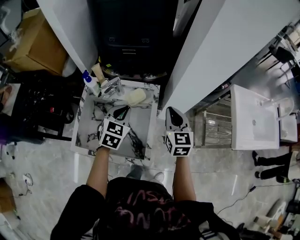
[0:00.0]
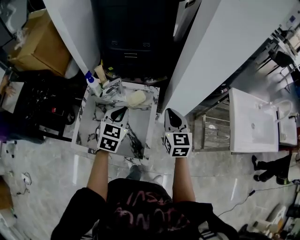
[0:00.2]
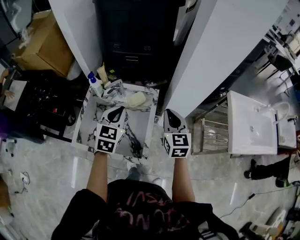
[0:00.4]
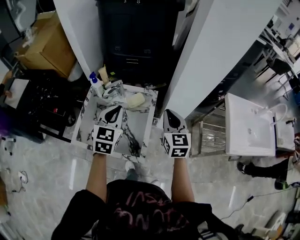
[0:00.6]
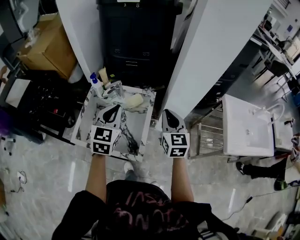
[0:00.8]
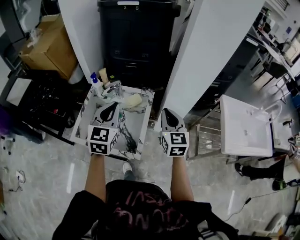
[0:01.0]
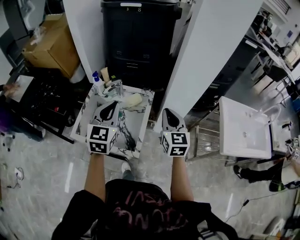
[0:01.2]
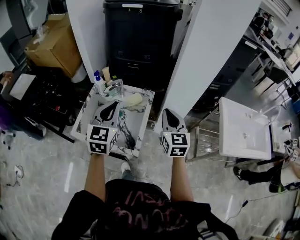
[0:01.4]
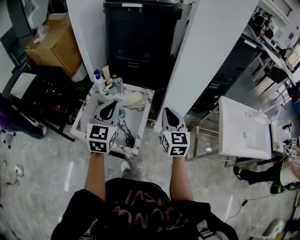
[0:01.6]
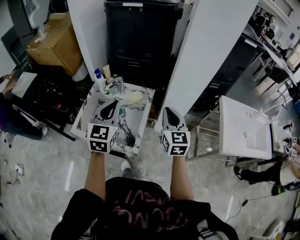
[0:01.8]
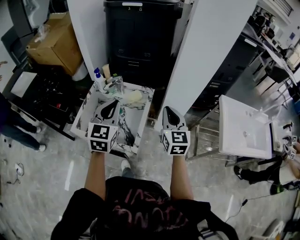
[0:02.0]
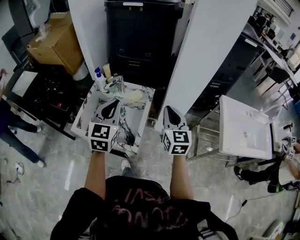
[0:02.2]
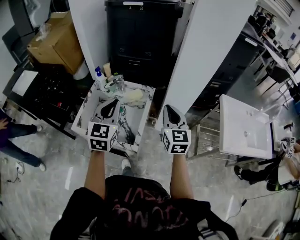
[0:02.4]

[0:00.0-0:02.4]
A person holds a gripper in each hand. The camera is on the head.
0:00.0 to 0:01.2: The left gripper is displaced upward and backward by some 20 cm, and turns by about 30 degrees; the right gripper shifts approximately 15 cm upward and backward.
0:01.2 to 0:02.4: The grippers make only small movements.

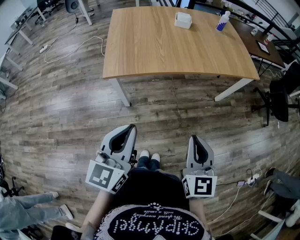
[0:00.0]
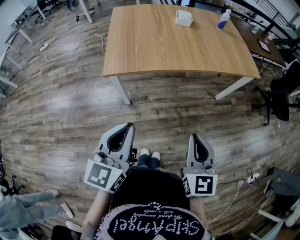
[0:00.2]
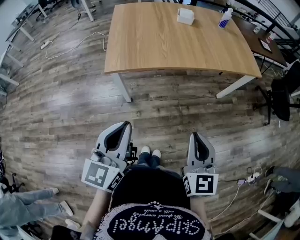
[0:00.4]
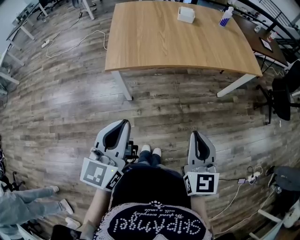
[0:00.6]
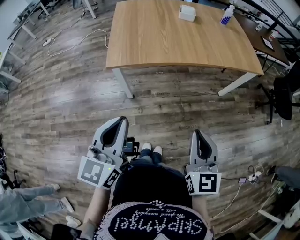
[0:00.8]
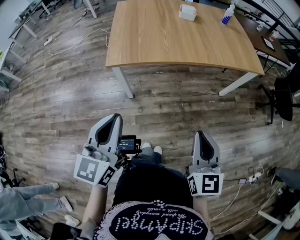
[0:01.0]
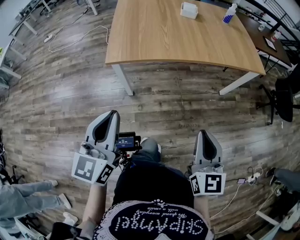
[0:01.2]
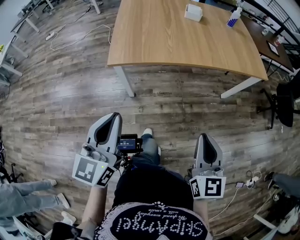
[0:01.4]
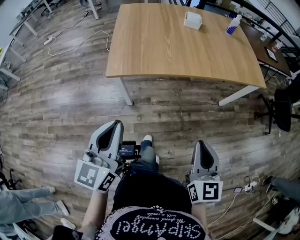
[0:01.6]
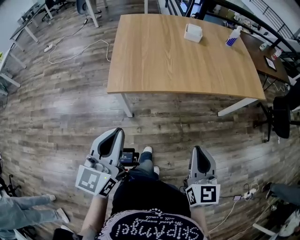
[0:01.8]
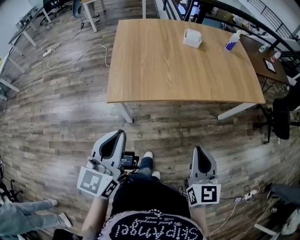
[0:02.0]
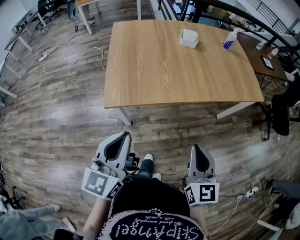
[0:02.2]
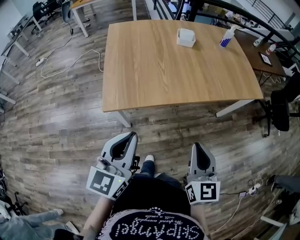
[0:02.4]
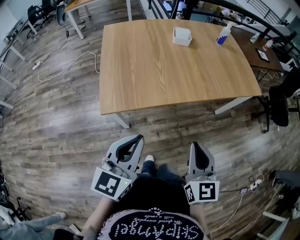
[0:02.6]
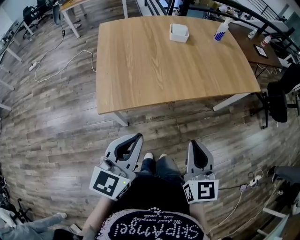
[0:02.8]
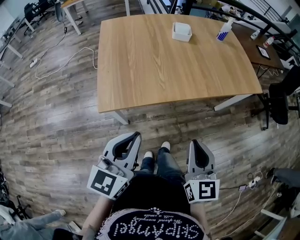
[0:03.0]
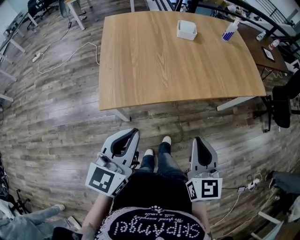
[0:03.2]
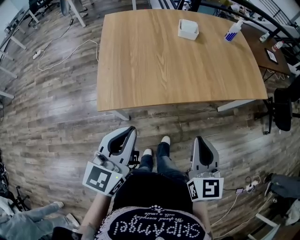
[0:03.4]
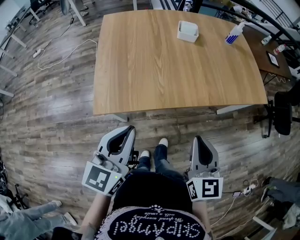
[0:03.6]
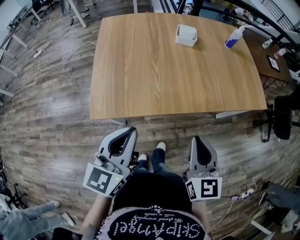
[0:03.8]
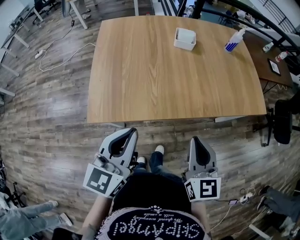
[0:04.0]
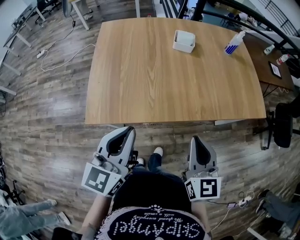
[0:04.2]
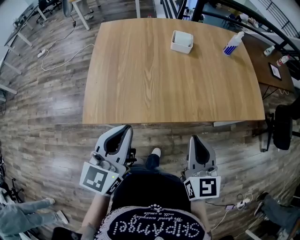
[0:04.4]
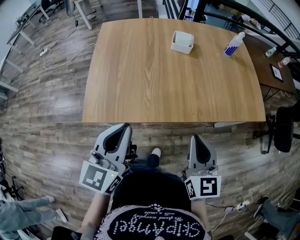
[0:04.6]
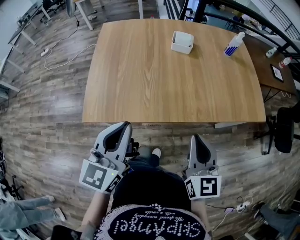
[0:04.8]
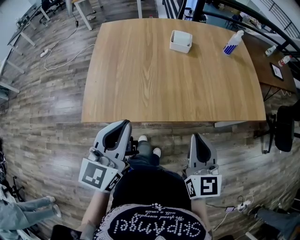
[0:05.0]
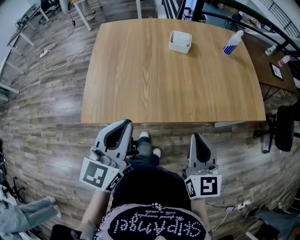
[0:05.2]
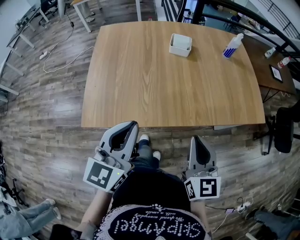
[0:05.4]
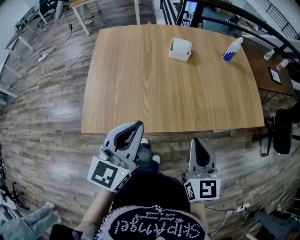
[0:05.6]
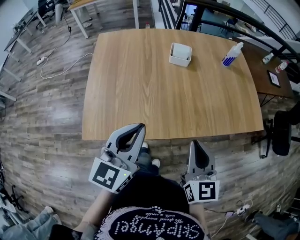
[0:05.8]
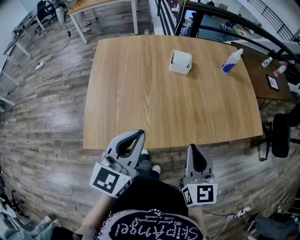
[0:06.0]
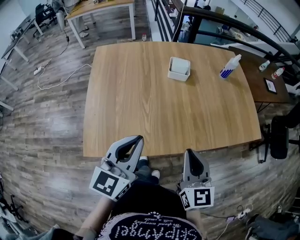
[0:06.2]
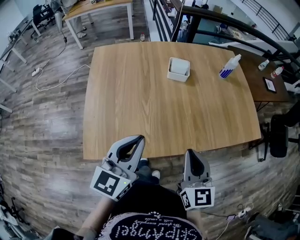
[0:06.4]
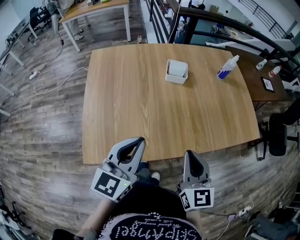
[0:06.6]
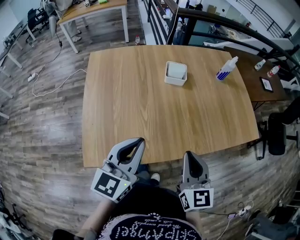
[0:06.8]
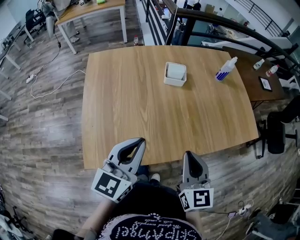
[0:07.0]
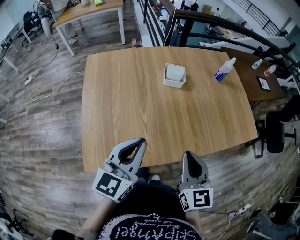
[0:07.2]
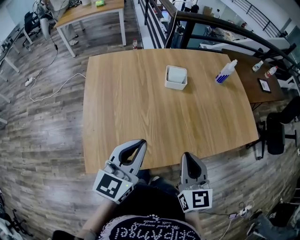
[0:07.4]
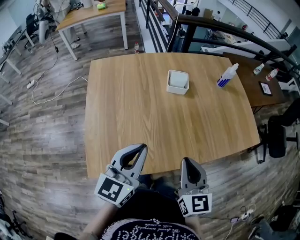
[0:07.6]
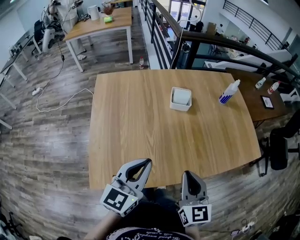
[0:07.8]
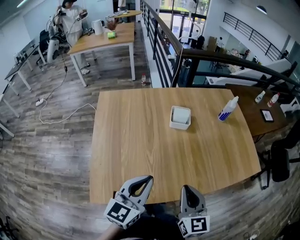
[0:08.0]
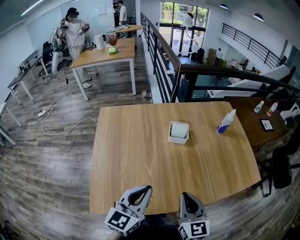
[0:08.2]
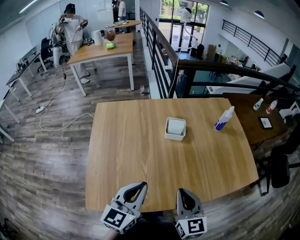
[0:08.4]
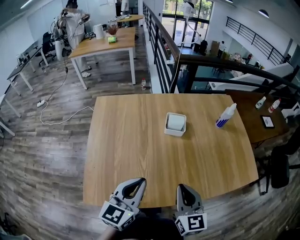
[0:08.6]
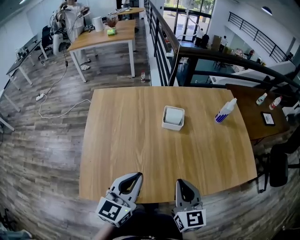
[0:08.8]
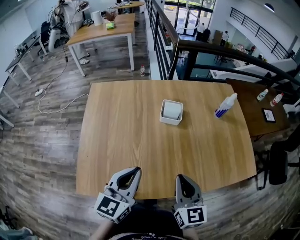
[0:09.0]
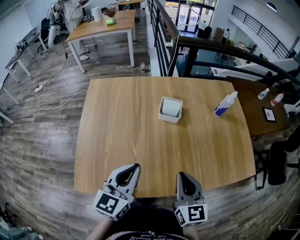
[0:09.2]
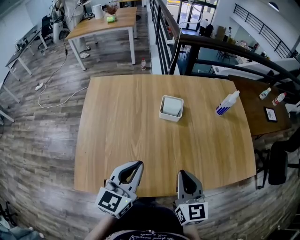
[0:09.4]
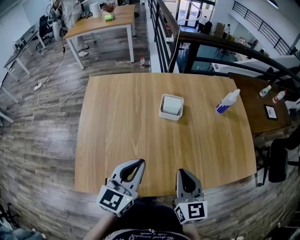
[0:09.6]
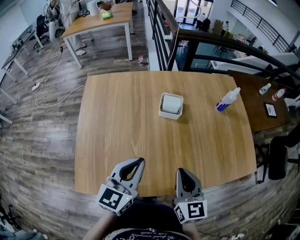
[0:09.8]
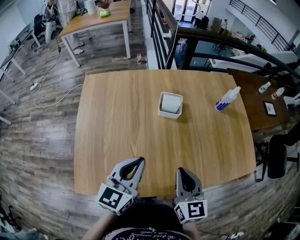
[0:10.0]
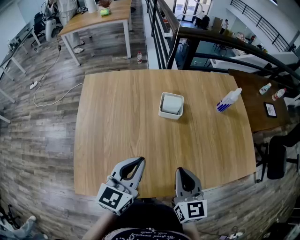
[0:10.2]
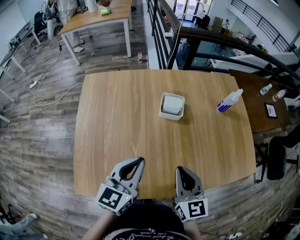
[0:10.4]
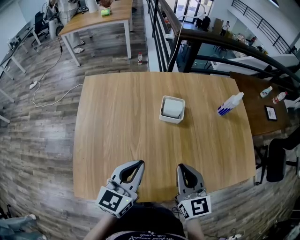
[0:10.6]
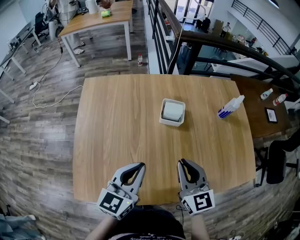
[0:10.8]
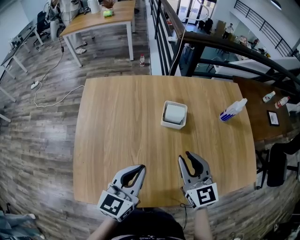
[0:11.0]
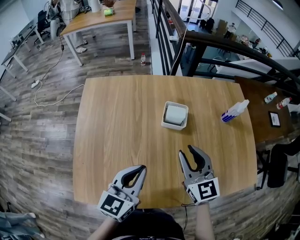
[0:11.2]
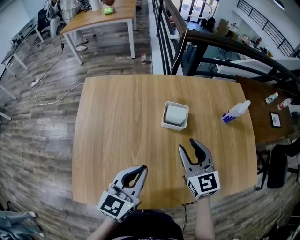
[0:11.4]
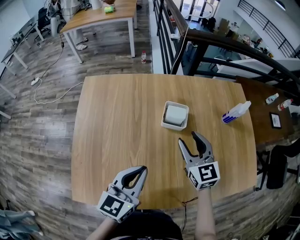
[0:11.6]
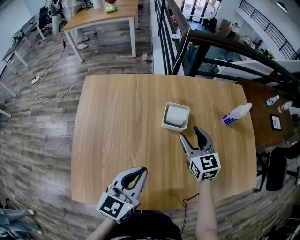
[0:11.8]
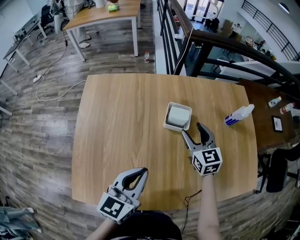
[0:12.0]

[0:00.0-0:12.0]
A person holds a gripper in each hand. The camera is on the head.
0:00.0 to 0:01.6: The left gripper changes place by approximately 5 cm.
0:01.6 to 0:03.0: The right gripper shifts some 15 cm forward and to the left. Meanwhile the left gripper heads forward, covering roughly 15 cm.
0:03.0 to 0:04.4: The two grippers go some 15 cm forward and to the right.
0:04.4 to 0:06.0: The grippers both shift forward by some 10 cm.
0:06.0 to 0:07.6: The right gripper shifts about 5 cm to the left. The left gripper travels forward by some 5 cm.
0:07.6 to 0:09.0: The left gripper ends up roughly 5 cm from where it was. The right gripper moves forward, roughly 5 cm.
0:09.0 to 0:10.4: The left gripper is displaced forward by roughly 5 cm.
0:10.4 to 0:12.0: The right gripper moves forward, about 25 cm, and opens up.

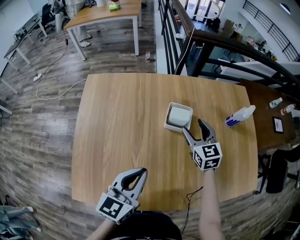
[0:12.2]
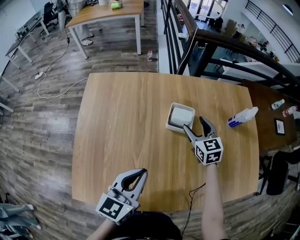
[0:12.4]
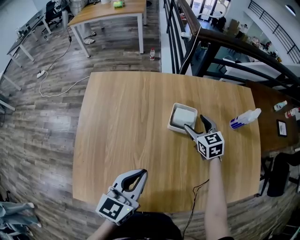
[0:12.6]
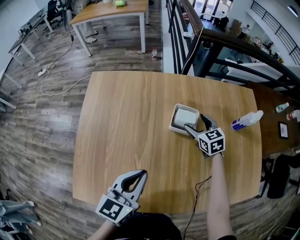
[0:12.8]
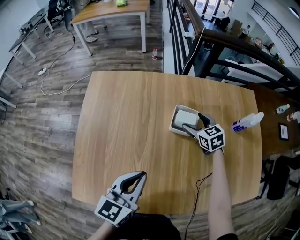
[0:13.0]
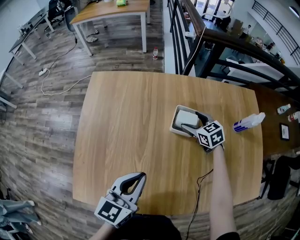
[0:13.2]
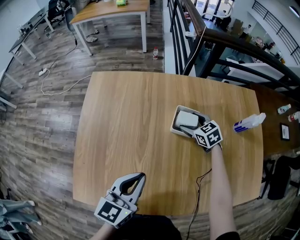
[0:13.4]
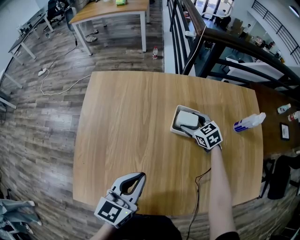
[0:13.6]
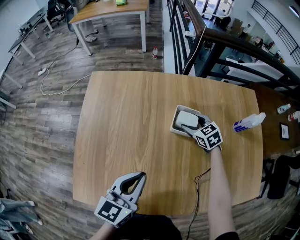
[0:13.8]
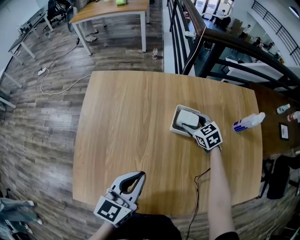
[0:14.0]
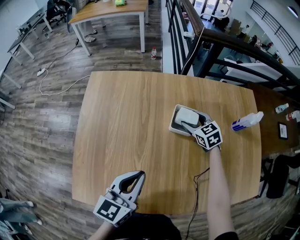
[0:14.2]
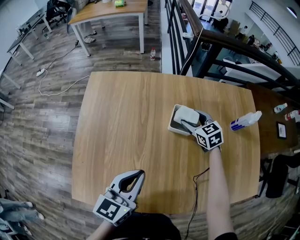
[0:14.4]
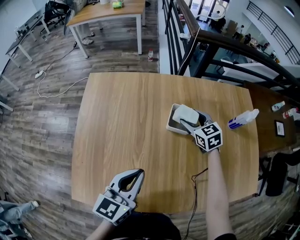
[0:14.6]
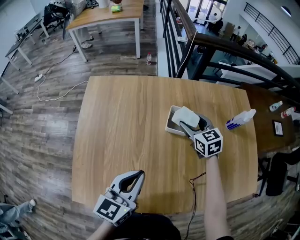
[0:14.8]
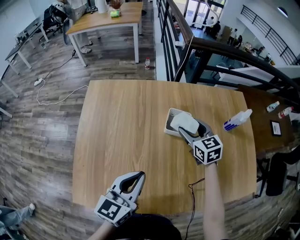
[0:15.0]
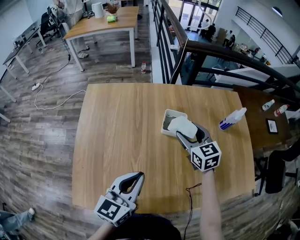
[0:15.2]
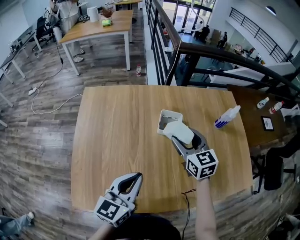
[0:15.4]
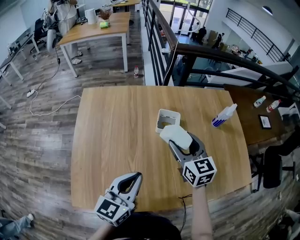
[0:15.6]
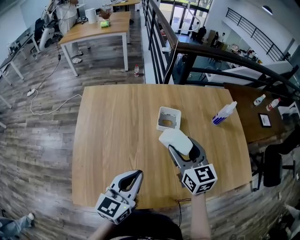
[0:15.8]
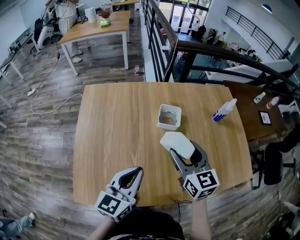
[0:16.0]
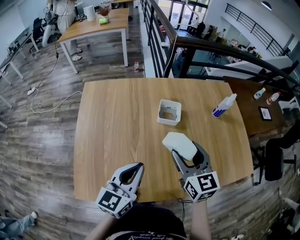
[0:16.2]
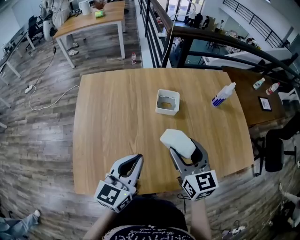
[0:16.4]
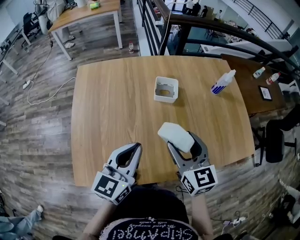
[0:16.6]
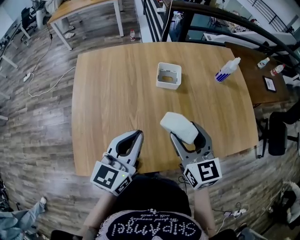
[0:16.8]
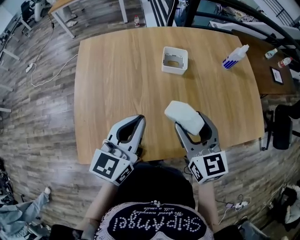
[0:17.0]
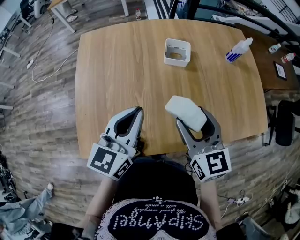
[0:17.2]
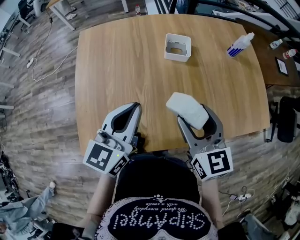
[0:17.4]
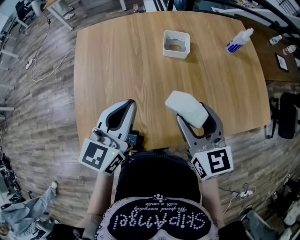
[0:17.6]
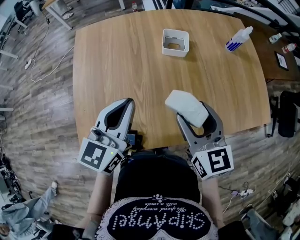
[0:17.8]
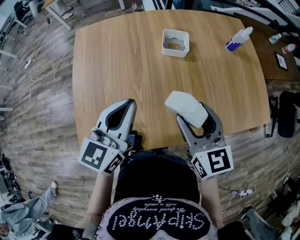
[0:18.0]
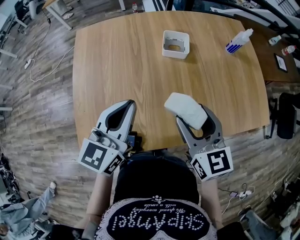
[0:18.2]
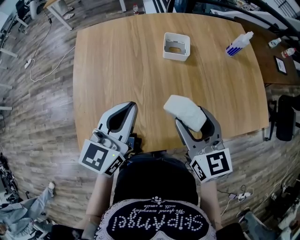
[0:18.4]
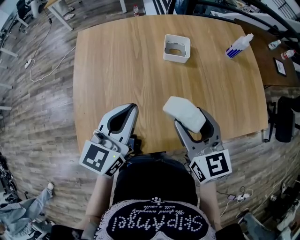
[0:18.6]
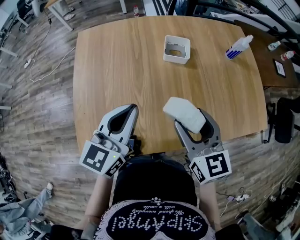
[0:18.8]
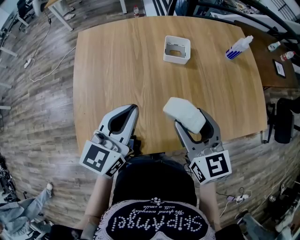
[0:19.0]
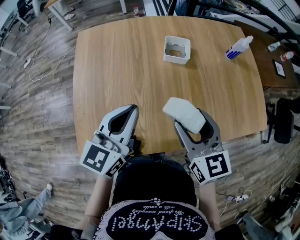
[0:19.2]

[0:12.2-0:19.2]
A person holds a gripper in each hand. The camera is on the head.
0:12.2 to 0:13.6: The right gripper heads downward and forward, covering approximately 10 cm, and turns by about 30 degrees.
0:13.6 to 0:15.0: The right gripper is displaced upward by some 10 cm, and changes its angle by about 20 degrees.
0:15.0 to 0:16.4: The right gripper travels backward and upward by about 25 cm.
0:16.4 to 0:17.8: The right gripper shifts some 5 cm backward.
0:17.8 to 0:19.2: Neither gripper changes place.

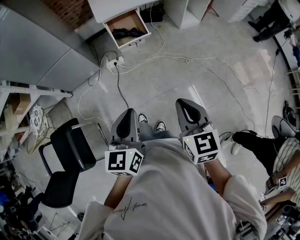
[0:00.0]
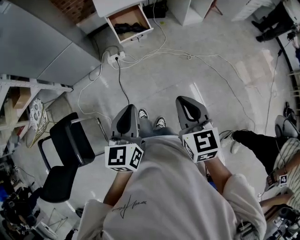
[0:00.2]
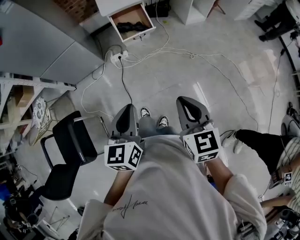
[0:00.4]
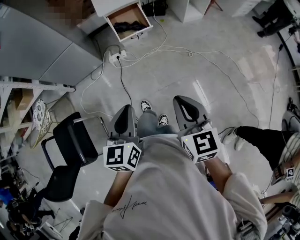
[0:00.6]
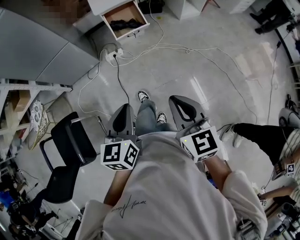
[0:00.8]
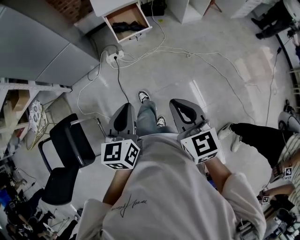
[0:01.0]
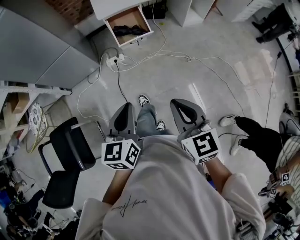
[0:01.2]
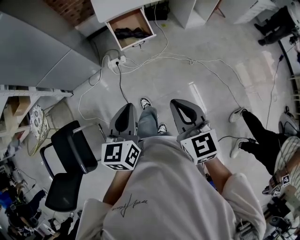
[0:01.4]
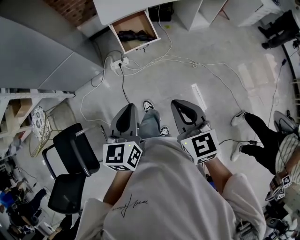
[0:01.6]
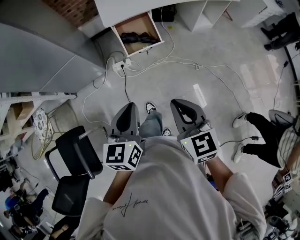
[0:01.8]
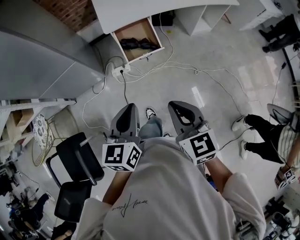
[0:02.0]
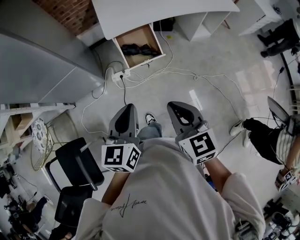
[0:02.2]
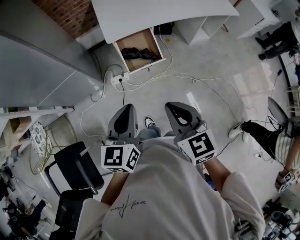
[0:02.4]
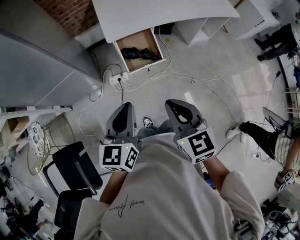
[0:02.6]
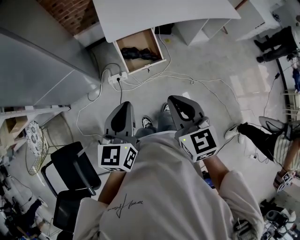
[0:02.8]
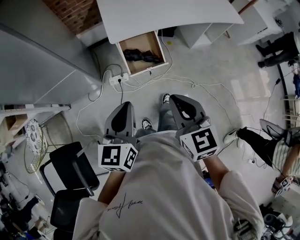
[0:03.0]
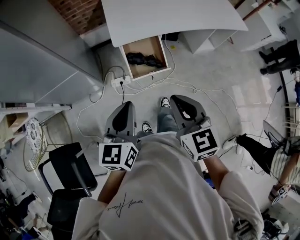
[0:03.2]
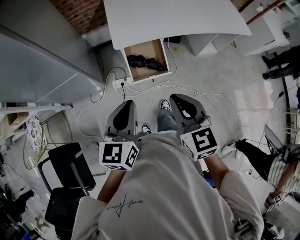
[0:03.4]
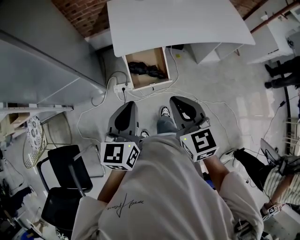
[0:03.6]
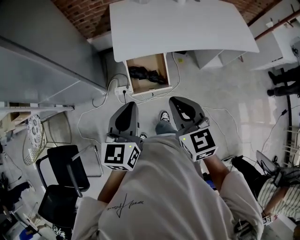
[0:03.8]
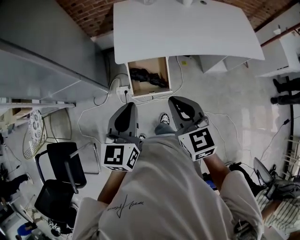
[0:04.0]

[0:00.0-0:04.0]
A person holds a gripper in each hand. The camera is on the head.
0:00.0 to 0:01.4: The grippers both shift forward by roughly 10 cm.
0:01.4 to 0:02.6: Both grippers move forward, approximately 20 cm.
0:02.6 to 0:04.0: Both grippers travel together forward and to the right, approximately 20 cm.
